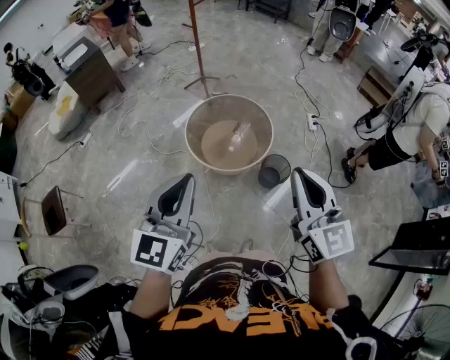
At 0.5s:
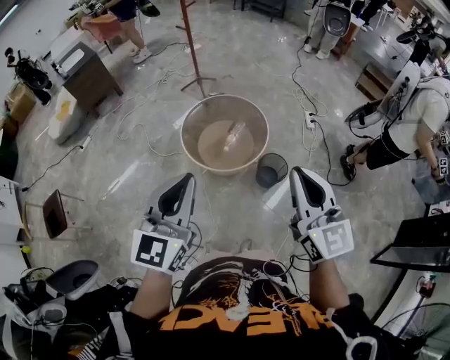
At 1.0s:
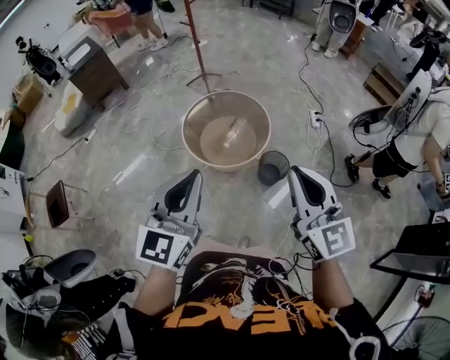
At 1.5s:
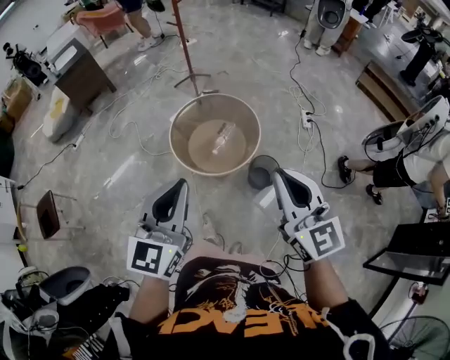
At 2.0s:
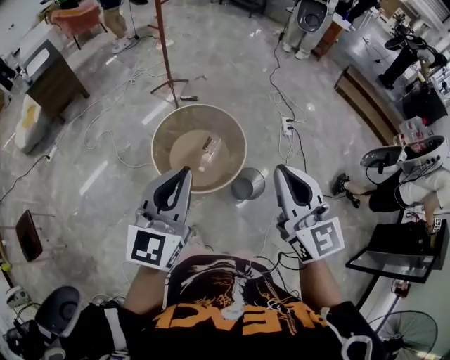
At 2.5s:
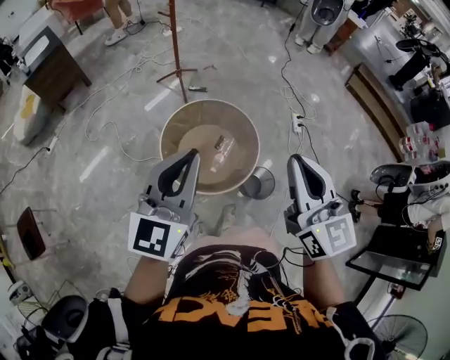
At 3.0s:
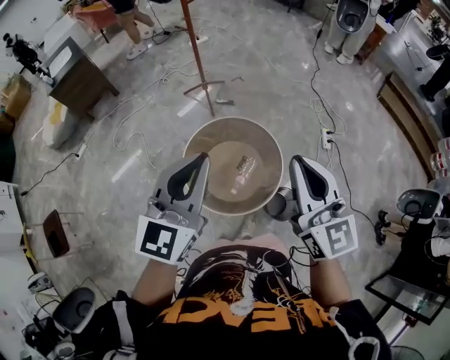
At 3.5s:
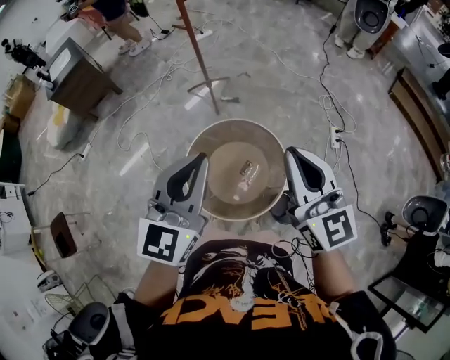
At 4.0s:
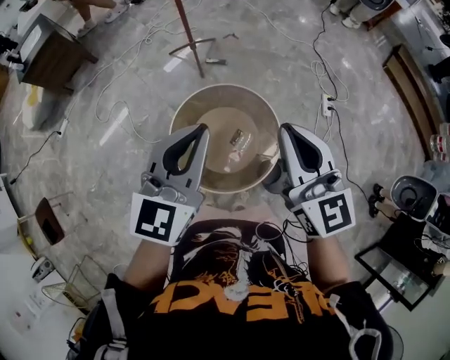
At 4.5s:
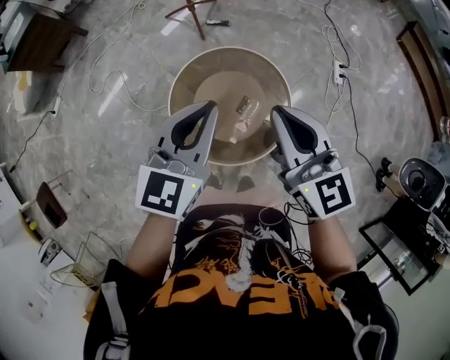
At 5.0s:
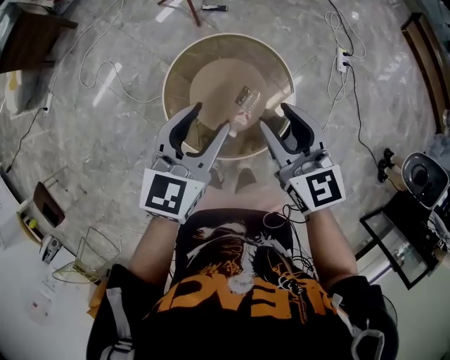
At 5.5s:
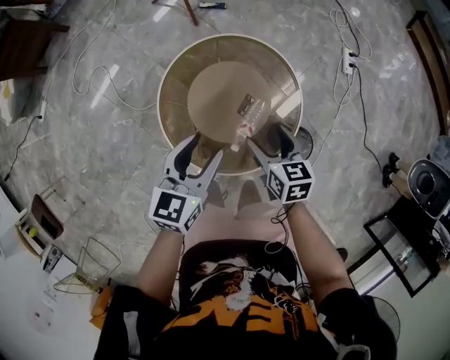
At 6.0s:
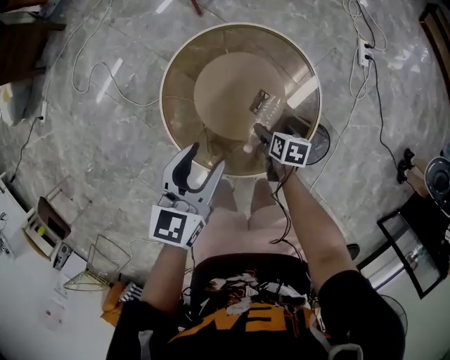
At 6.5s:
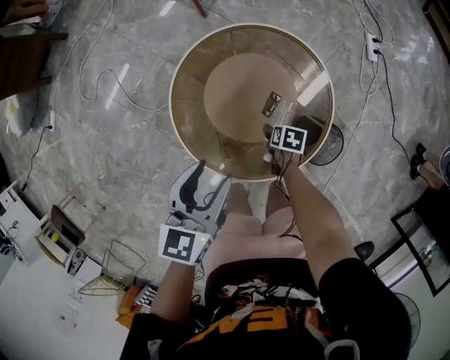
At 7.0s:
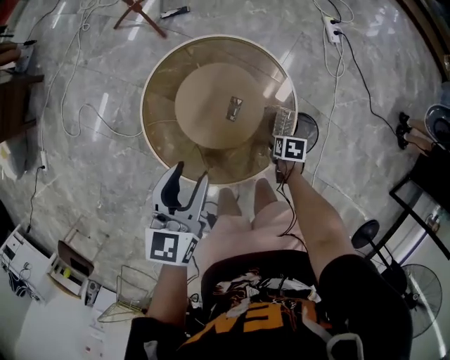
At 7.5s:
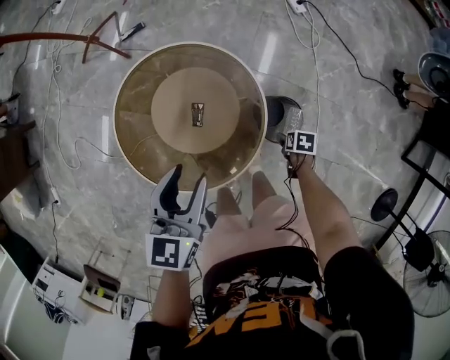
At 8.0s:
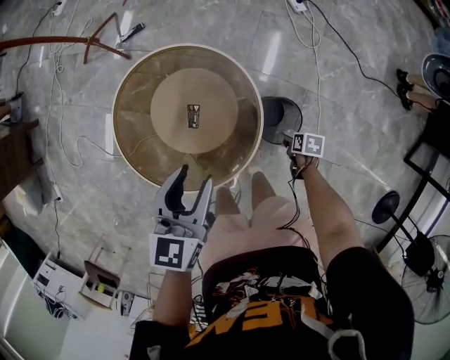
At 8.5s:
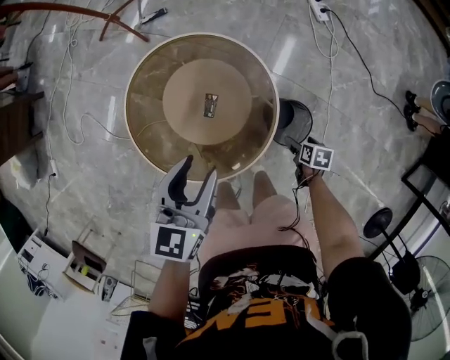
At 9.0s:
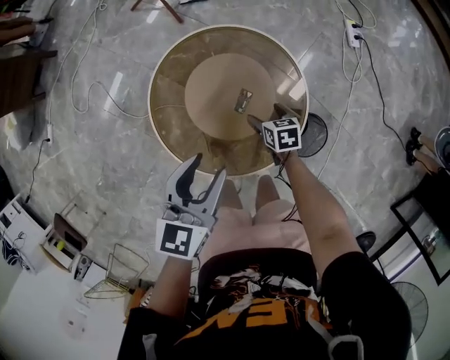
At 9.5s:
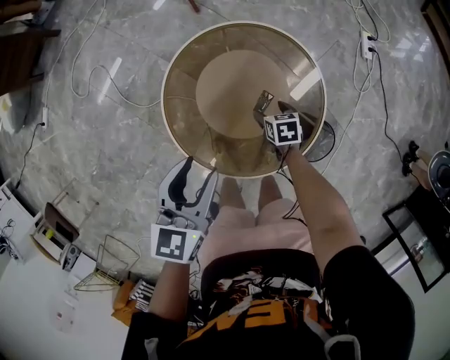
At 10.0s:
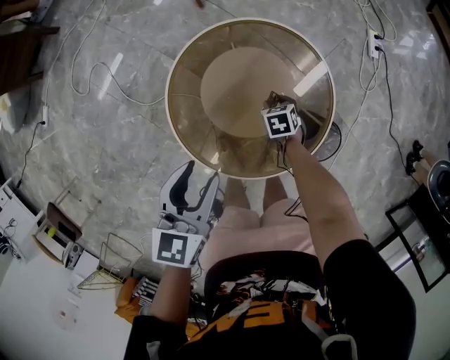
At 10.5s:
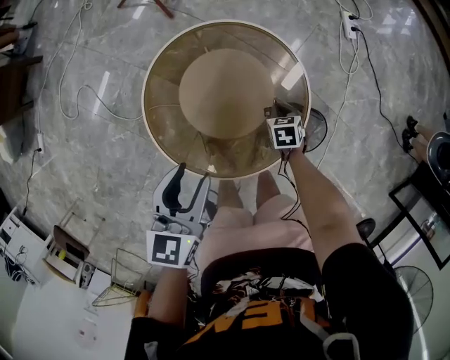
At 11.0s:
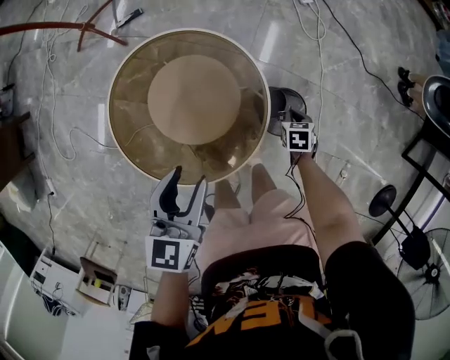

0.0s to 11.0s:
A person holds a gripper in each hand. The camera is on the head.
0.0s to 2.0s: Both grippers travel together forward, approximately 20 cm.
2.0s to 3.5s: The grippers both shift forward by approximately 30 cm.
3.5s to 5.5s: The grippers both shift downward by about 40 cm. The left gripper rotates roughly 40 degrees, and opens its fingers, while the right gripper points its fingers about 50 degrees further downward, and opens its fingers.
5.5s to 7.5s: The right gripper moves some 40 cm, and angles its fingers downward, by about 40 degrees; the left gripper ends up some 15 cm from where it was.
7.5s to 9.0s: The right gripper ends up some 30 cm from where it was, and swivels some 50 degrees; the left gripper changes place by some 10 cm.
9.0s to 11.0s: The right gripper shifts by some 25 cm, swivels about 30 degrees, and closes.

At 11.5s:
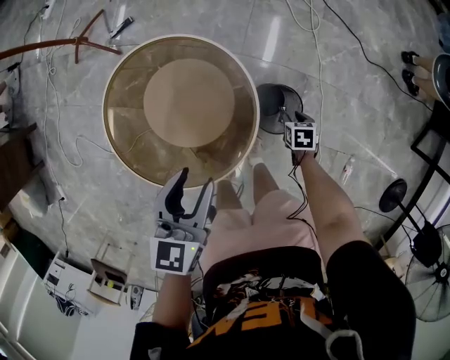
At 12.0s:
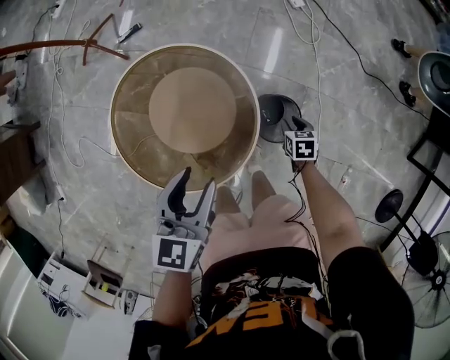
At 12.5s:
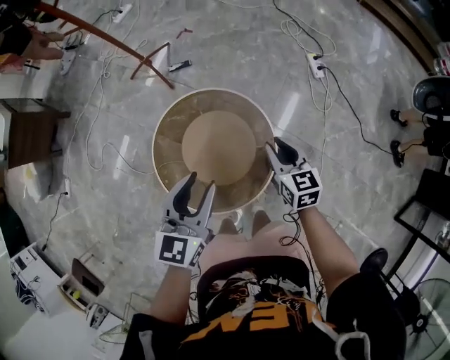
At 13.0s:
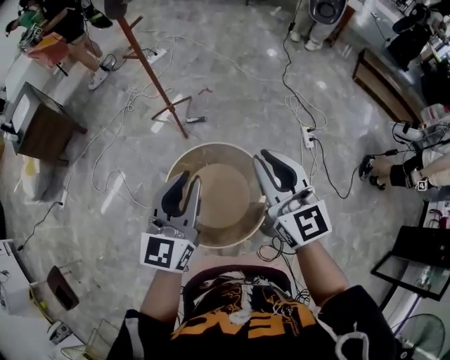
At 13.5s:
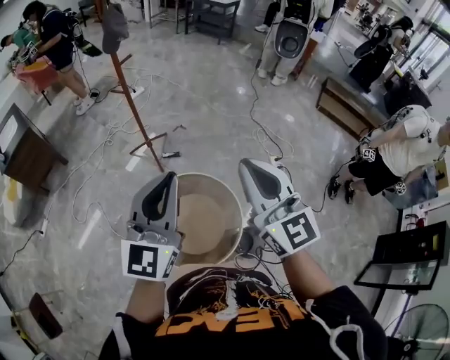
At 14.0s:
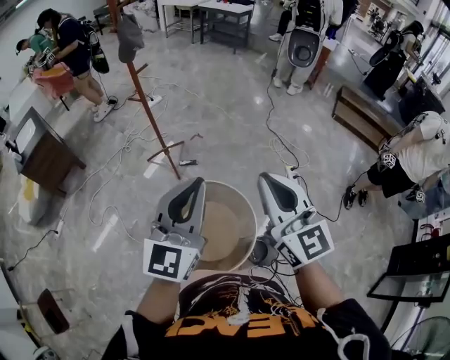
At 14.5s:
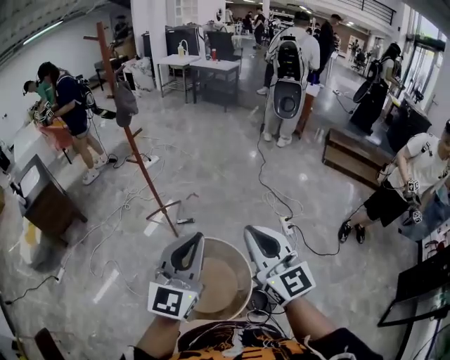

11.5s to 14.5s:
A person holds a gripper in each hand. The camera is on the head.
11.5s to 13.0s: The left gripper moves upward, some 35 cm, angles its fingers upward, by approximately 30 degrees, and closes. Meanwhile the right gripper travels upward by approximately 70 cm, and tips its fingers upward by some 70 degrees.
13.0s to 14.5s: The left gripper goes some 15 cm upward, backward and to the right. The right gripper moves upward and backward, approximately 15 cm.

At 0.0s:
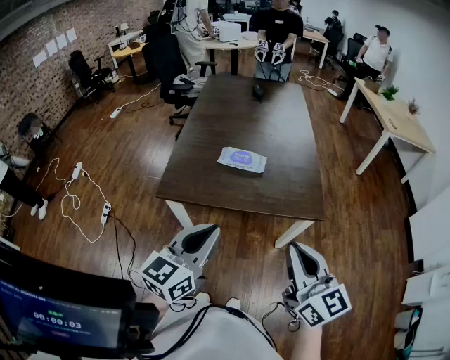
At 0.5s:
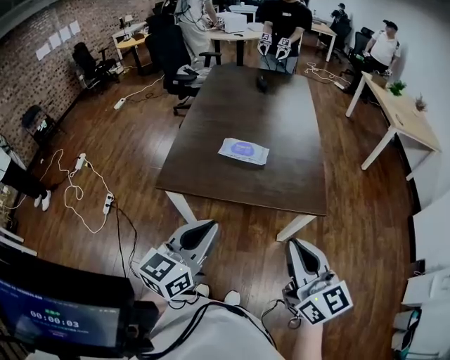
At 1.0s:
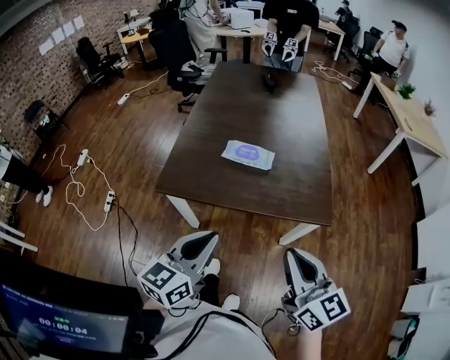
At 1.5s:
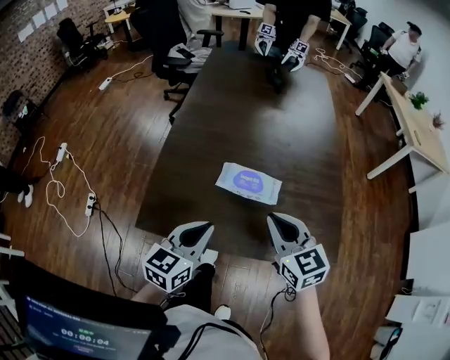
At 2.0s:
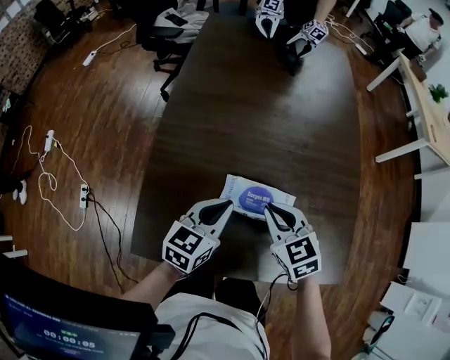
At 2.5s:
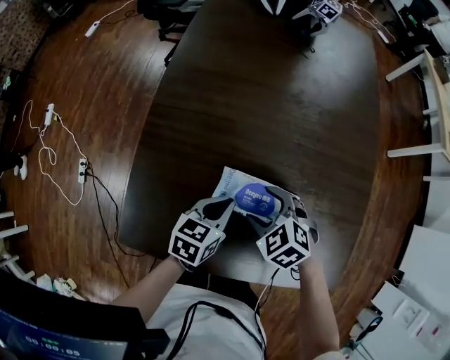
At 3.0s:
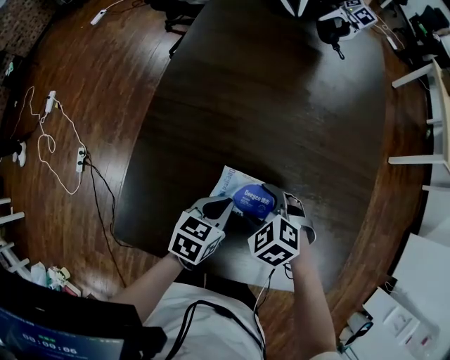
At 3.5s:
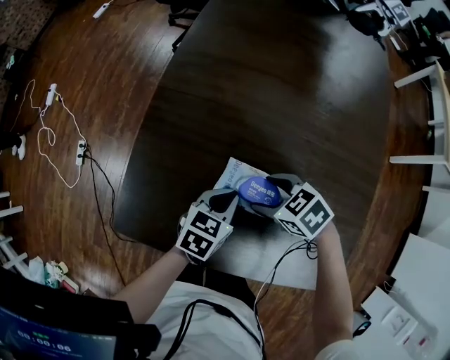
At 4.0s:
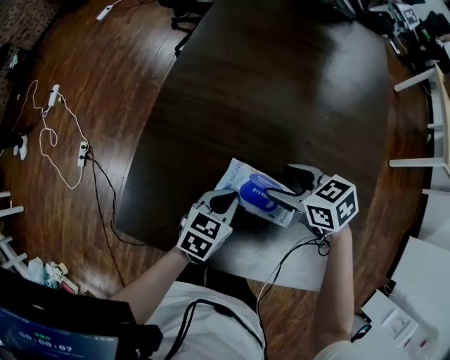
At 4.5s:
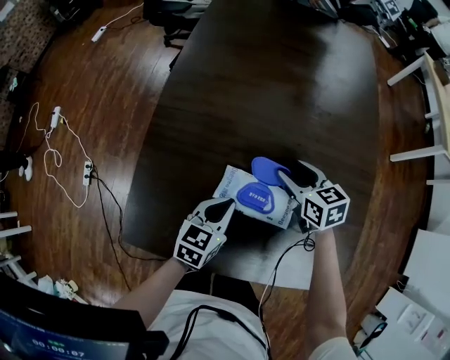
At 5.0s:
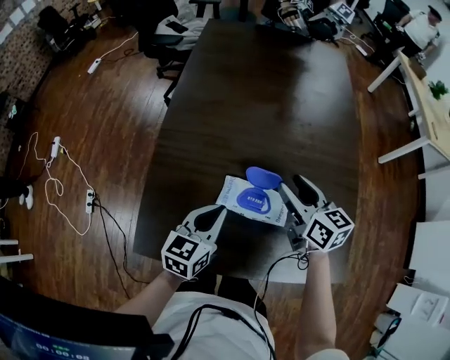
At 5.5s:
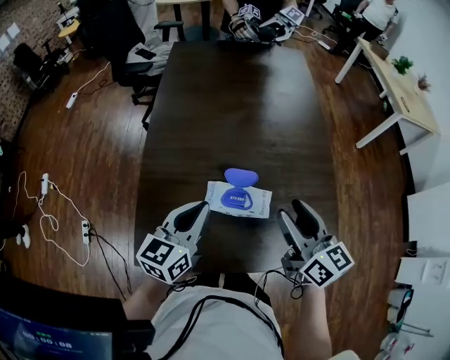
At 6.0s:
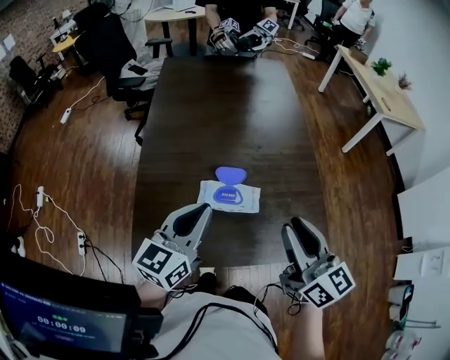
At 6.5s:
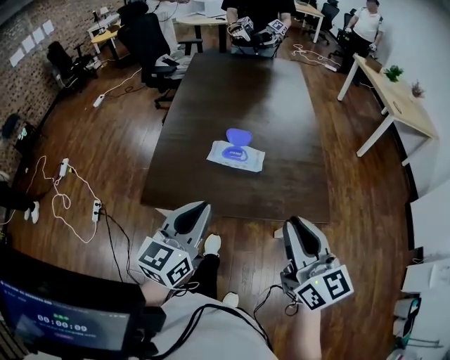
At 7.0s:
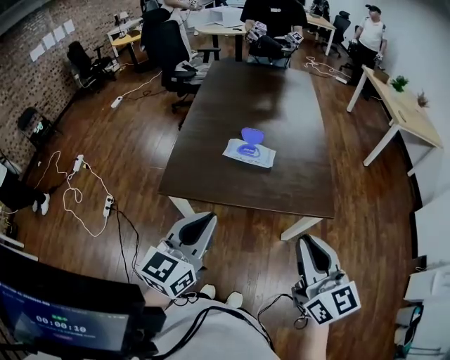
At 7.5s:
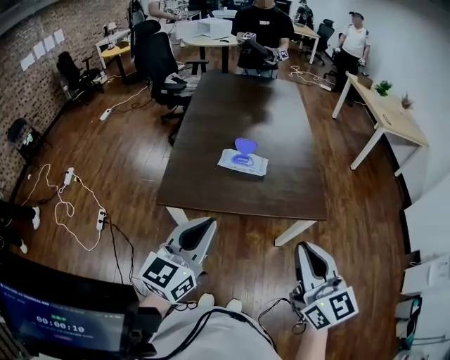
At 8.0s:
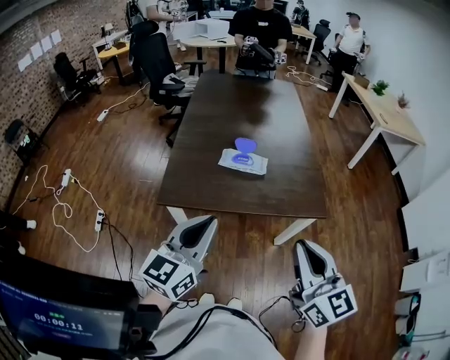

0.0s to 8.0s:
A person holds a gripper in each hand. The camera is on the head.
0.0s to 2.0s: Both grippers are carried forward, some 50 cm. The grippers both shift downward by some 25 cm. The right gripper points its fingers roughly 40 degrees further downward; the left gripper swivels about 20 degrees.
2.0s to 4.0s: The right gripper shifts by some 10 cm, turns by approximately 30 degrees, and opens up. The left gripper heads downward, covering approximately 10 cm.
4.0s to 6.0s: The two grippers go some 30 cm upward. The right gripper tilts its fingers approximately 40 degrees upward, and closes up; the left gripper angles its fingers upward, by roughly 40 degrees.
6.0s to 8.0s: The grippers both shift backward by roughly 35 cm.

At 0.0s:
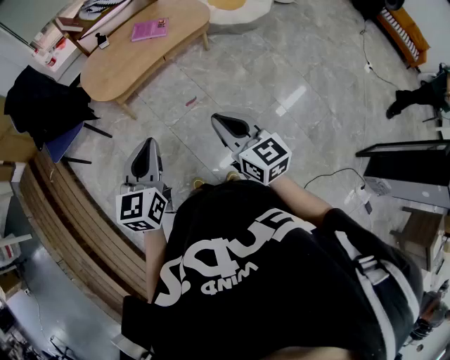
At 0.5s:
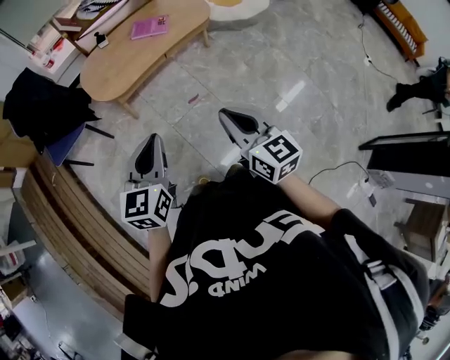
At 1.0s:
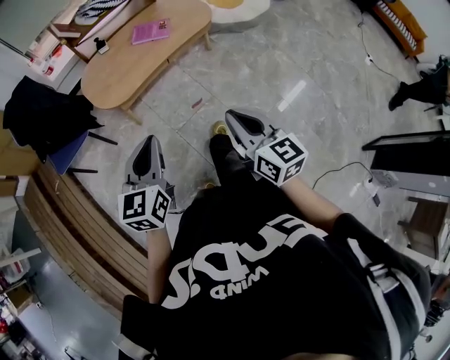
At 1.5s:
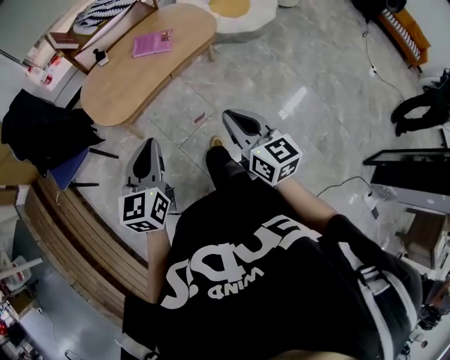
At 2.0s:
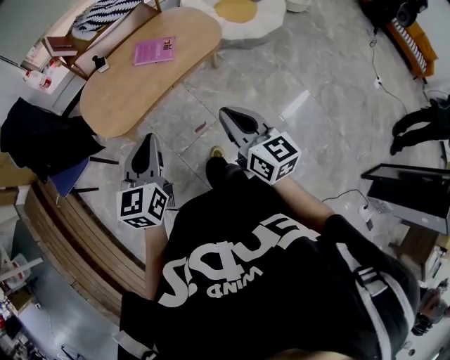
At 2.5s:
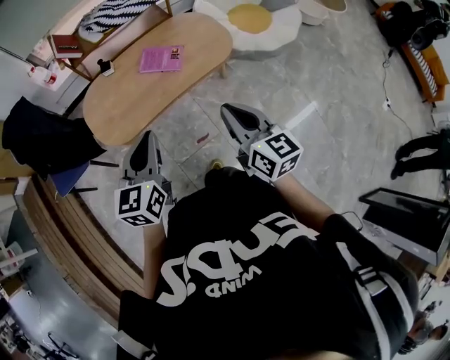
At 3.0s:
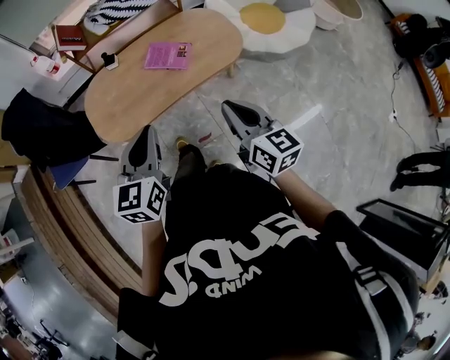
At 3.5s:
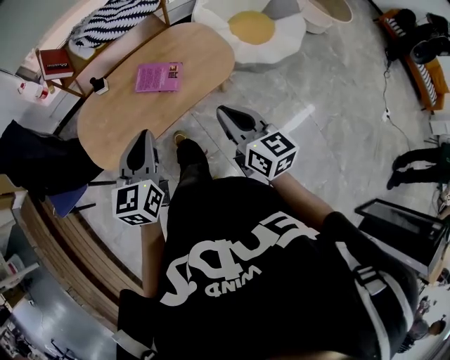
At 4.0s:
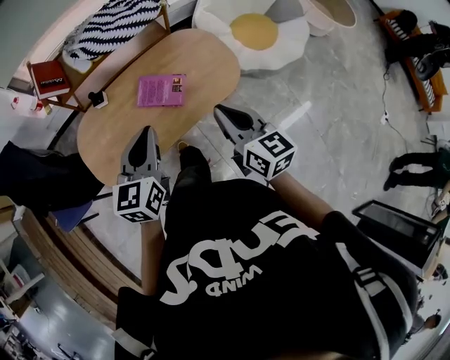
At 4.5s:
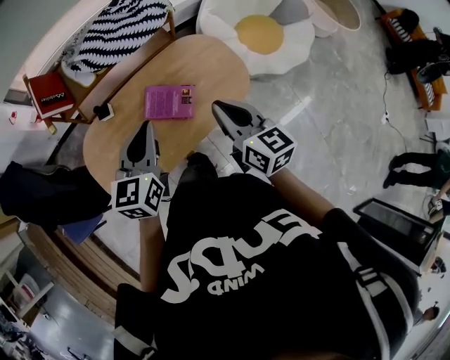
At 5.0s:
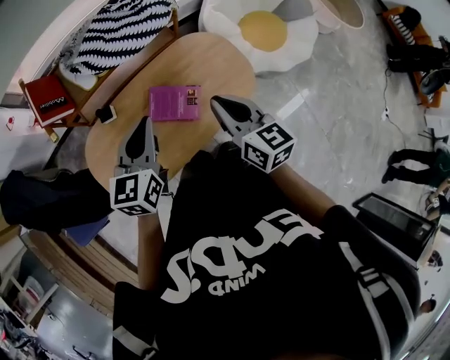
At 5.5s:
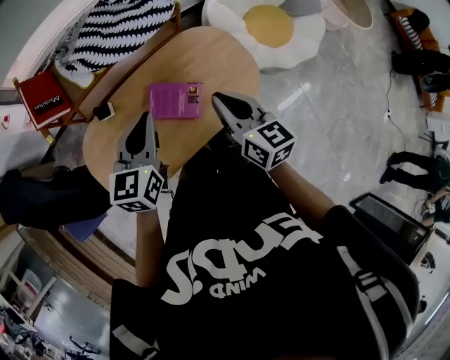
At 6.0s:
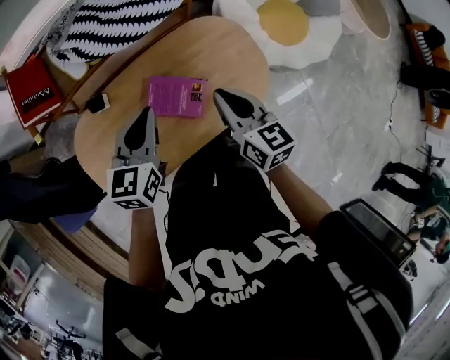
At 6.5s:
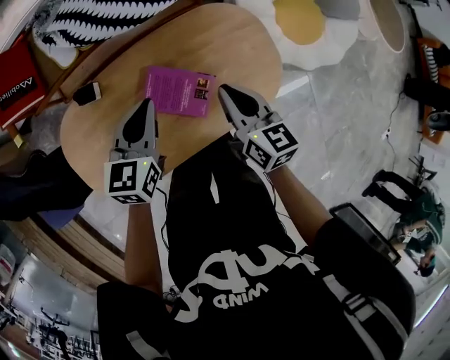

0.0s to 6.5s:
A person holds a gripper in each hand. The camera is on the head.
0.0s to 2.0s: Both grippers move forward, approximately 30 cm.
2.0s to 4.5s: The pair of grippers is taken forward, about 50 cm.
4.5s to 6.5s: Both grippers travel together downward and forward, approximately 25 cm.
